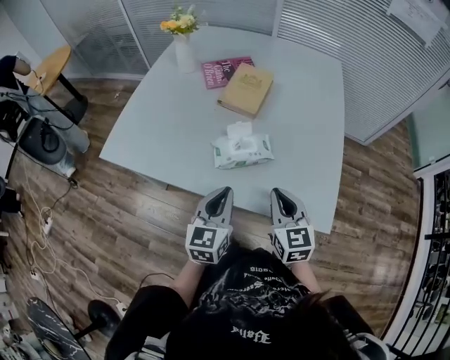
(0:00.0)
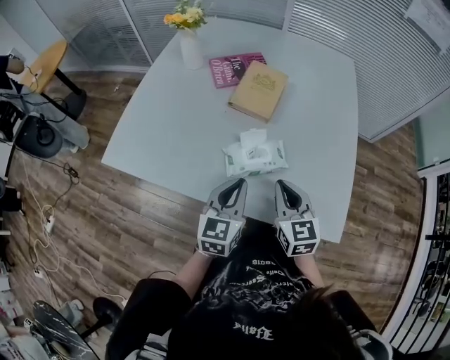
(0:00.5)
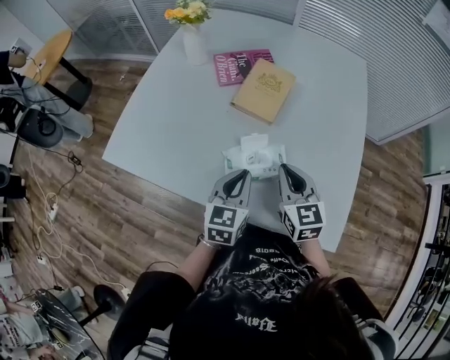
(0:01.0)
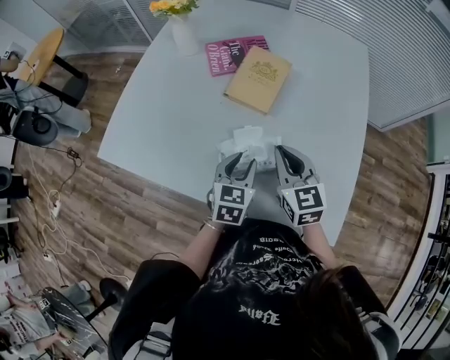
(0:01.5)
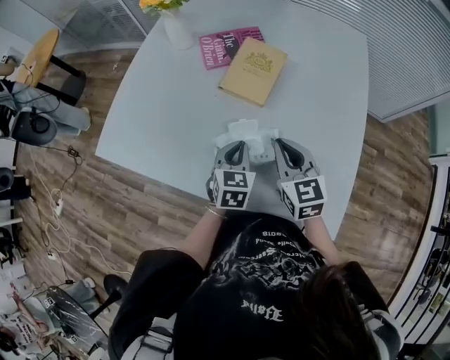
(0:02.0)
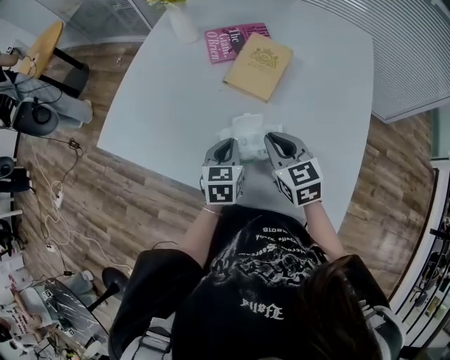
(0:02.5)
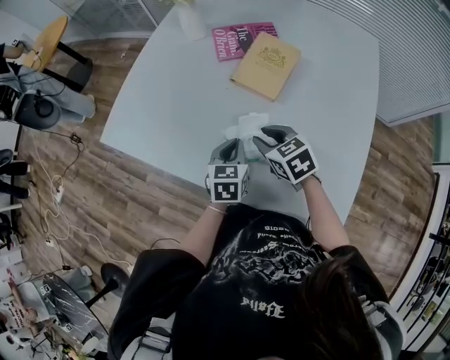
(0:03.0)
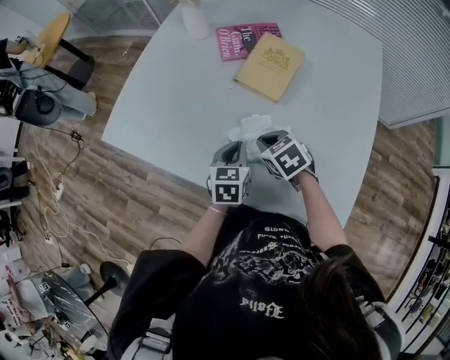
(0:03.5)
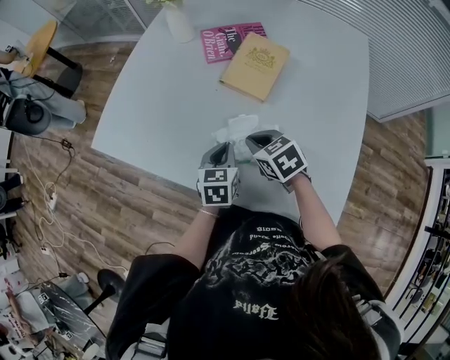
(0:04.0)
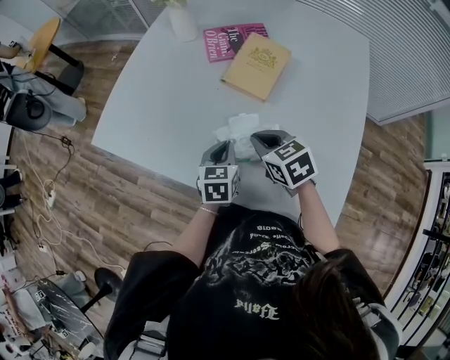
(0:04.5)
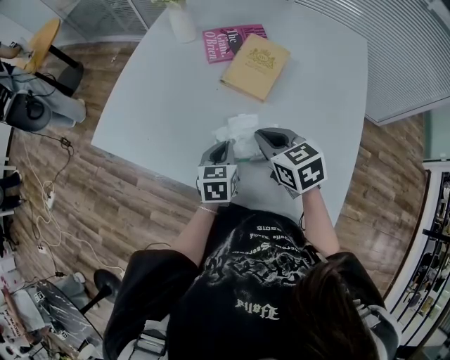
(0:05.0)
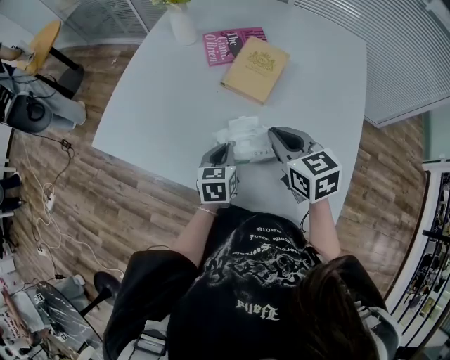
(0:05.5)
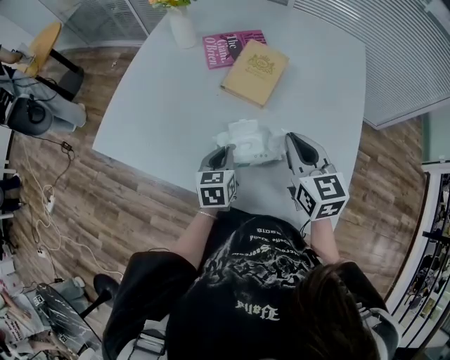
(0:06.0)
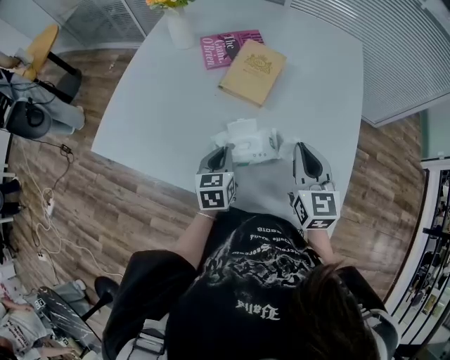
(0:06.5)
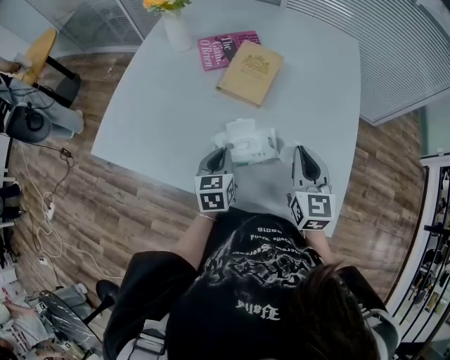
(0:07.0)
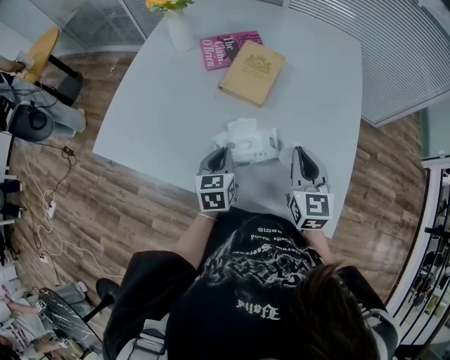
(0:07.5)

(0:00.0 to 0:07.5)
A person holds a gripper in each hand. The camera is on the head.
0:00.0 - 0:02.0: The right gripper goes roughly 20 cm forward; the left gripper moves forward and downward, some 20 cm, rotates roughly 20 degrees, and opens, then closes once more.
0:02.0 - 0:04.0: The right gripper is displaced to the left and downward by some 10 cm, swivels approximately 40 degrees, and opens, then closes once more. Meanwhile the left gripper moves to the left, approximately 5 cm.
0:04.0 - 0:05.5: The right gripper shifts some 10 cm upward and to the right, and swivels some 20 degrees.
0:05.5 - 0:07.5: The right gripper shifts approximately 10 cm to the right, and turns by approximately 30 degrees.

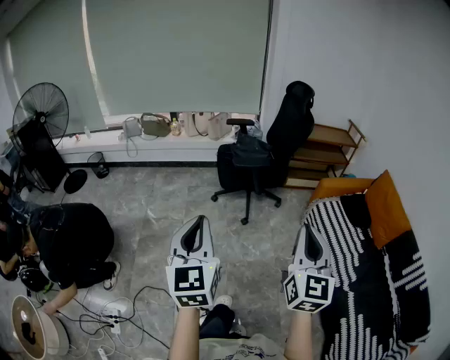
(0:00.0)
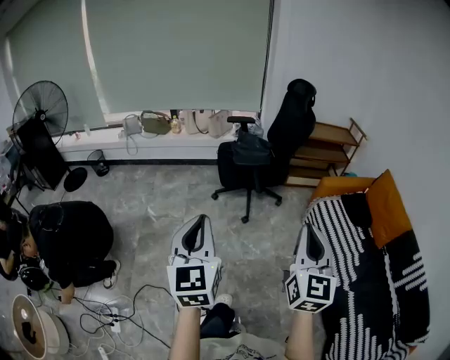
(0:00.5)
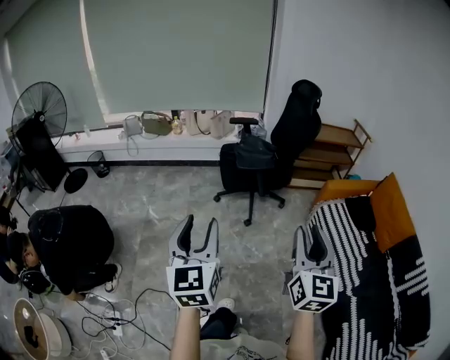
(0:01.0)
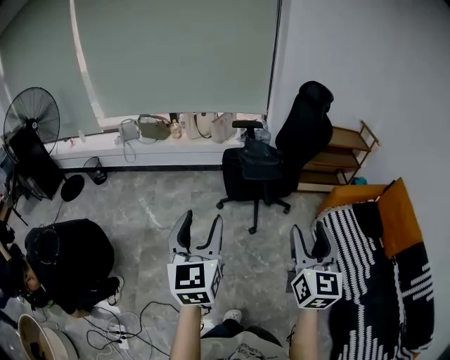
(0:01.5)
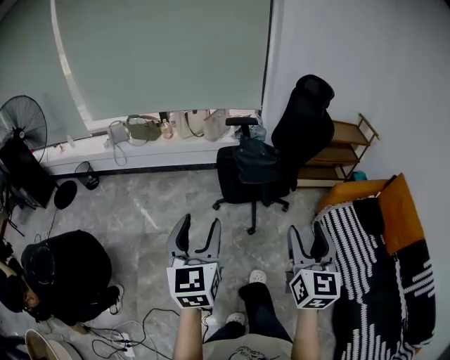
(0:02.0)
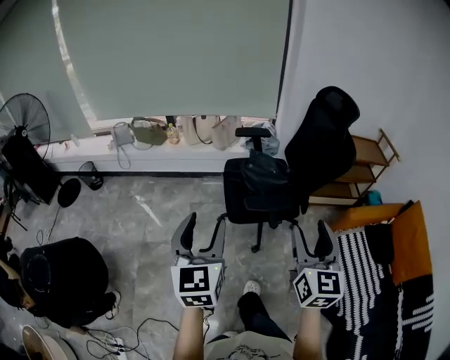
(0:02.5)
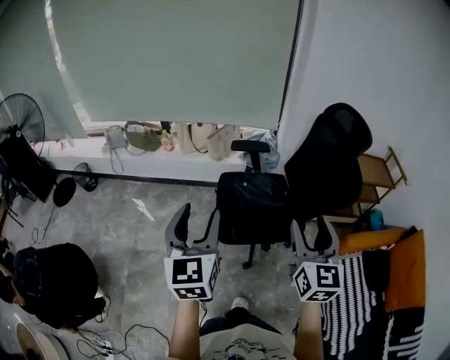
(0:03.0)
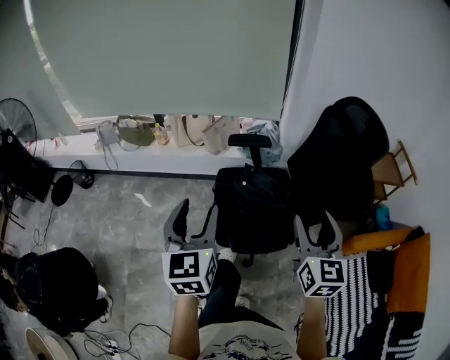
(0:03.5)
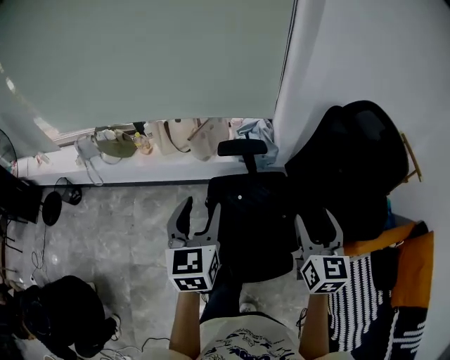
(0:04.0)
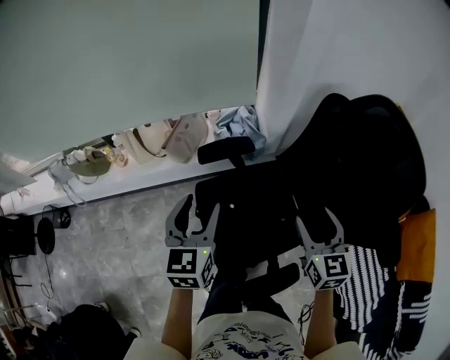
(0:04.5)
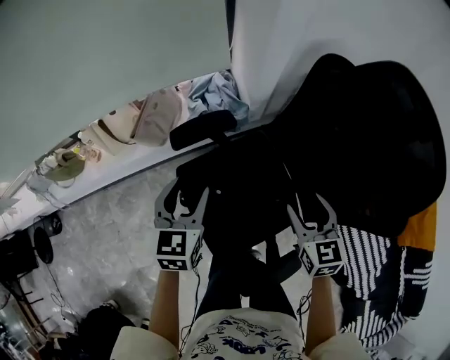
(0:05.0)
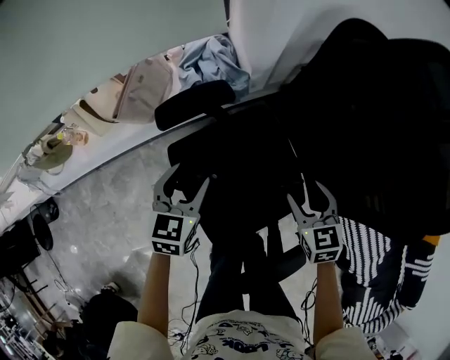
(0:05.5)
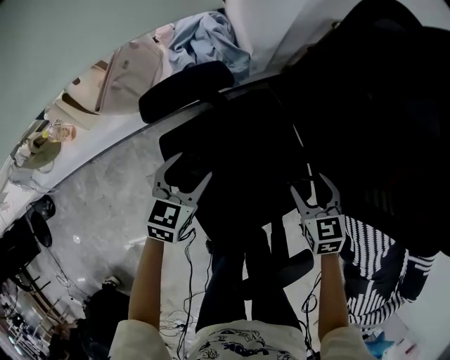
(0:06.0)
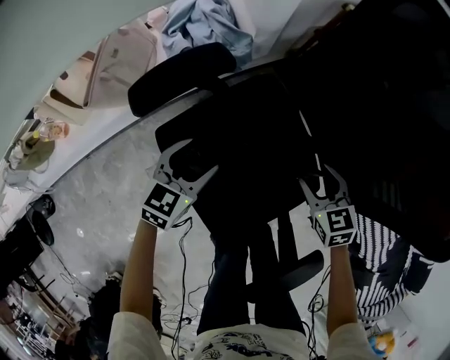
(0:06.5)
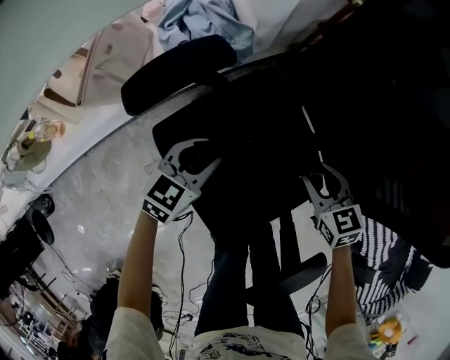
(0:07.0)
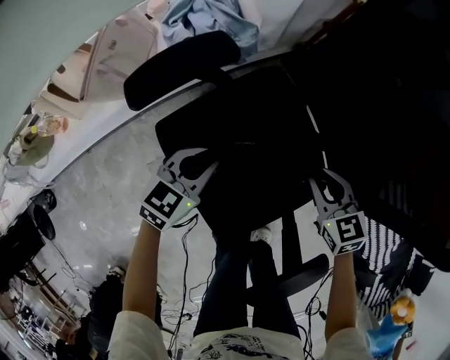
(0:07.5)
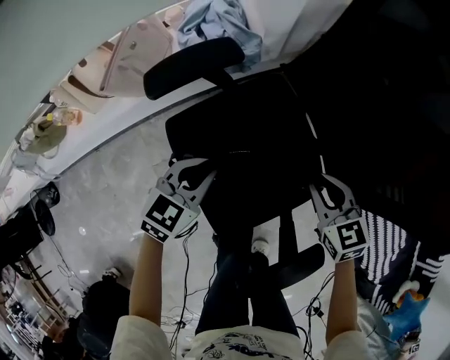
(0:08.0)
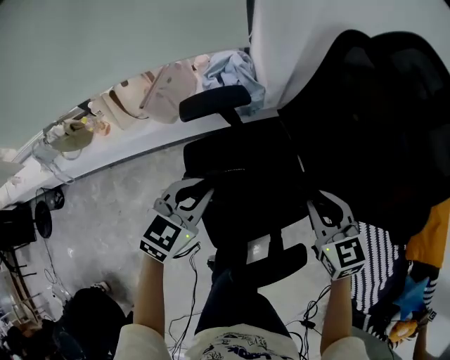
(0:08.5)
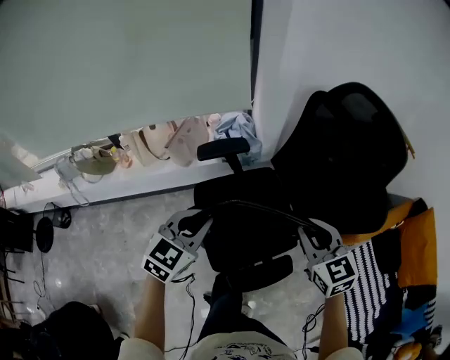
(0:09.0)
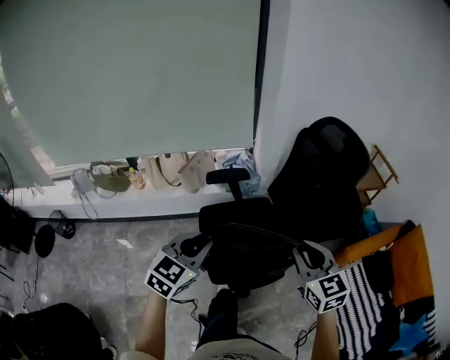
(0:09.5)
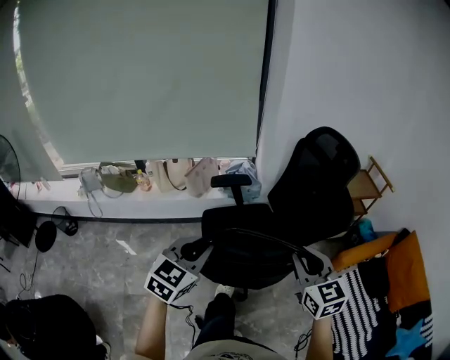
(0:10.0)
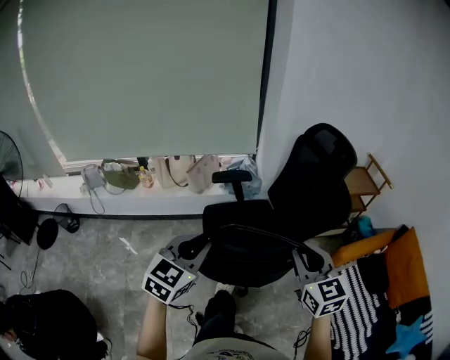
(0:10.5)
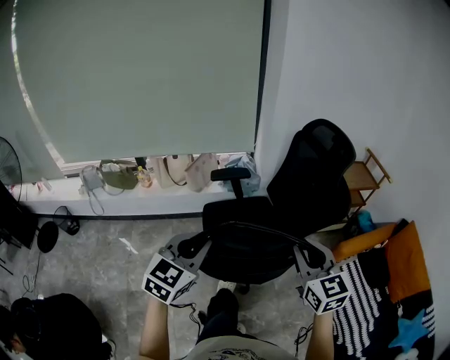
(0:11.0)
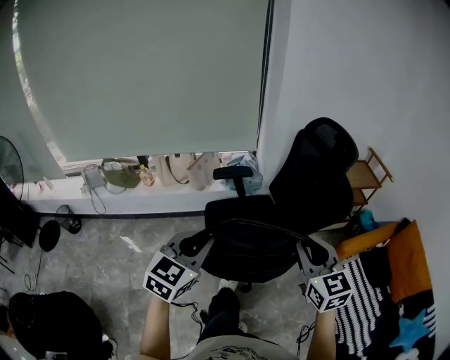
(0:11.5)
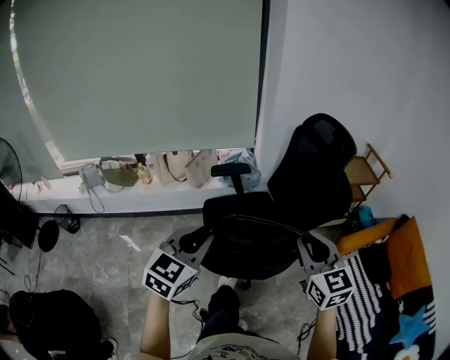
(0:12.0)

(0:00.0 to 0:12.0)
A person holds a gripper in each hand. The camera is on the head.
0:00.0 - 0:02.0: Both grippers travel together forward, approximately 30 cm. The right gripper opens up. The left gripper opens.
0:02.0 - 0:04.0: The two grippers travel together, forward, some 70 cm.
0:04.0 - 0:06.0: Both grippers travel together downward and forward, roughly 50 cm. The right gripper tilts its fingers about 30 degrees downward. The left gripper rotates some 50 degrees.
0:06.0 - 0:08.0: The left gripper is displaced backward by roughly 5 cm, and closes, while the right gripper closes.
0:08.0 - 0:10.0: Both grippers move upward and backward, about 60 cm. The right gripper swivels some 30 degrees, while the left gripper turns by about 30 degrees.
0:10.0 - 0:12.0: The grippers make only small movements.

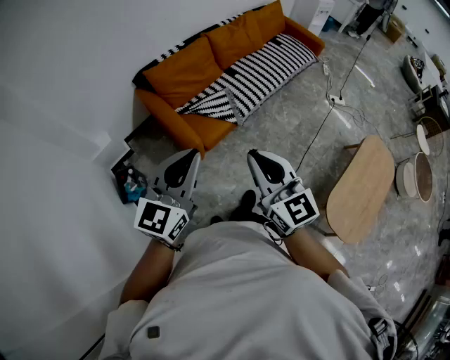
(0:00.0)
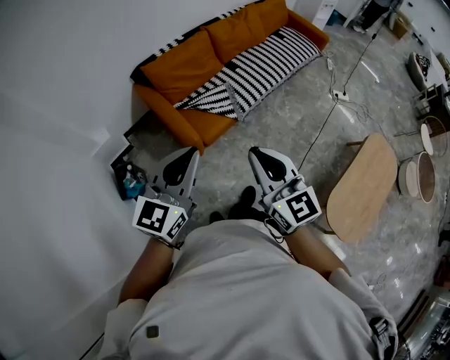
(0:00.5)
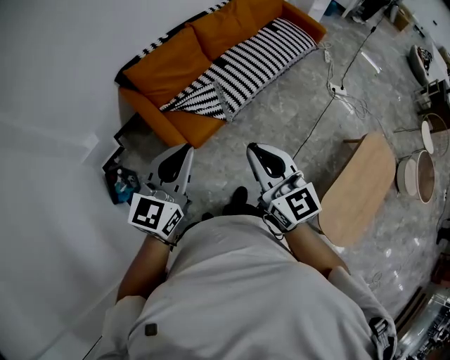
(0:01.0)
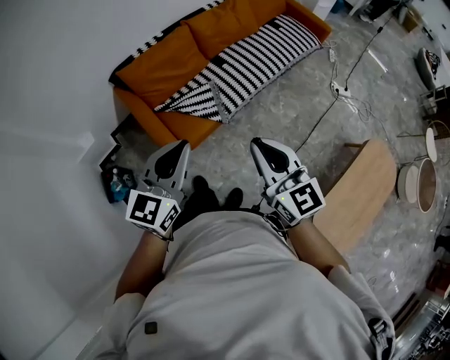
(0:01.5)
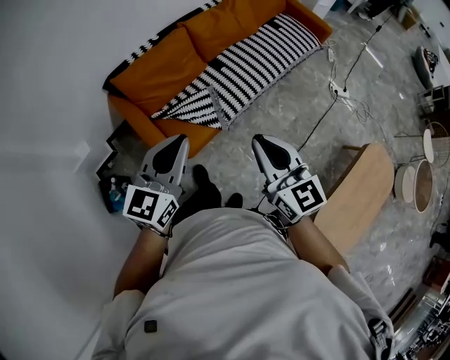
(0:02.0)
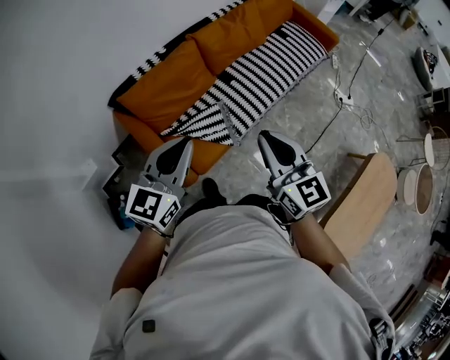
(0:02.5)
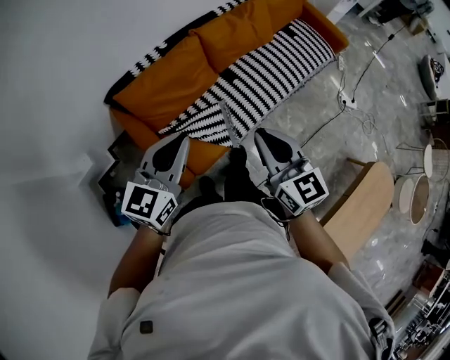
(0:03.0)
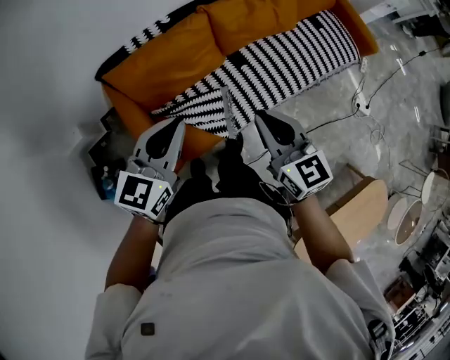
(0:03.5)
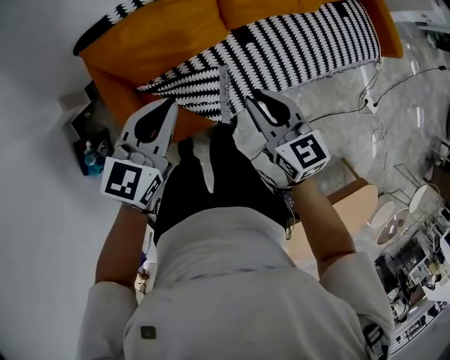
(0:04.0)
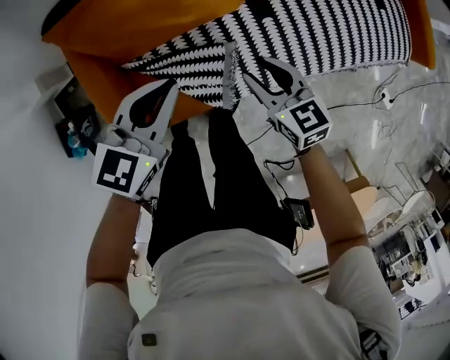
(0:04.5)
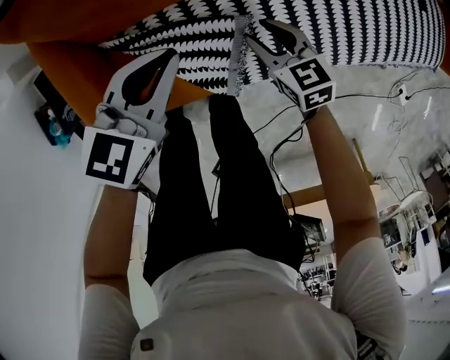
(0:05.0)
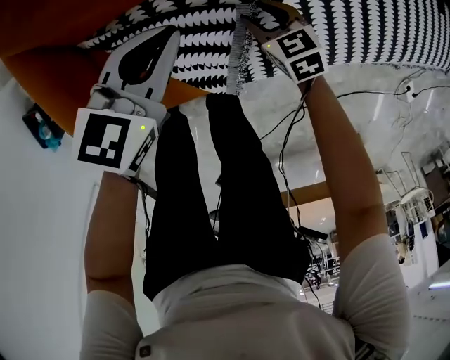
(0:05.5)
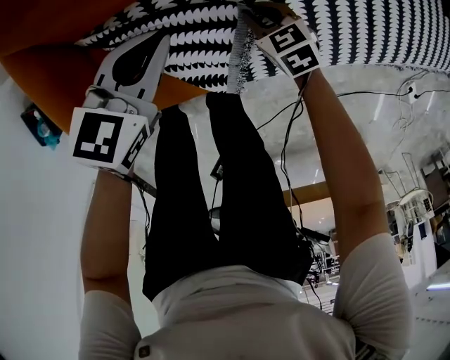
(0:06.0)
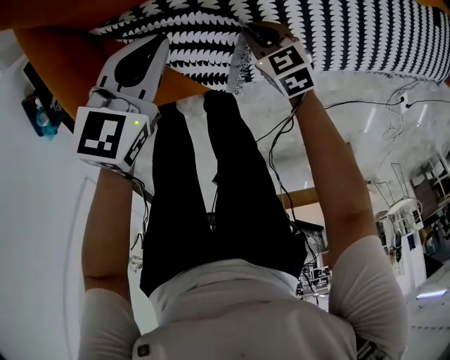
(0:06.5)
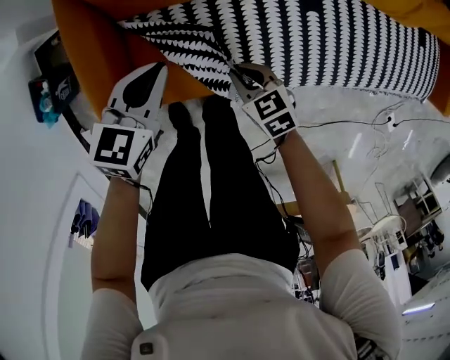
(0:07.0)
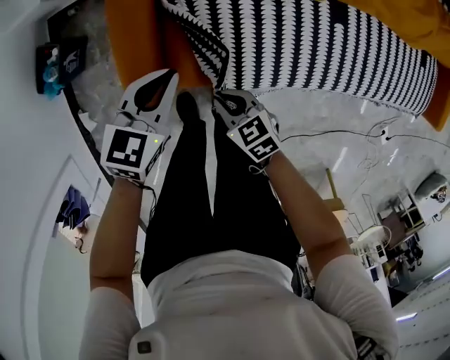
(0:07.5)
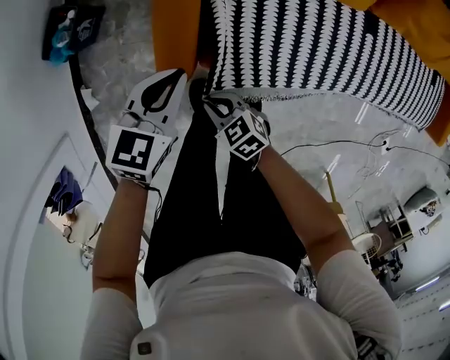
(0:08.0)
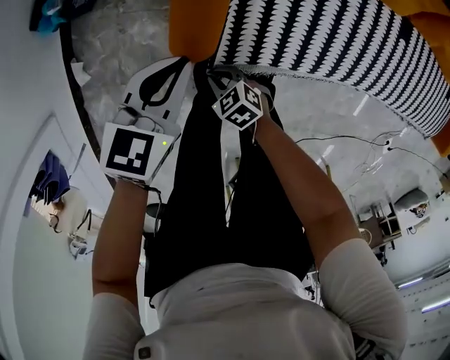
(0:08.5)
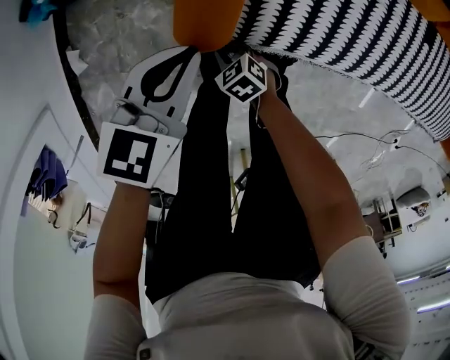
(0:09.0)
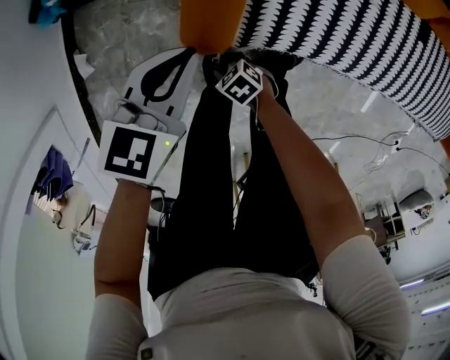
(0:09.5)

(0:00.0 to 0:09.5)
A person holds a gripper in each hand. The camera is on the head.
0:00.0 - 0:02.0: The two grippers go approximately 30 cm forward and to the right.
0:02.0 - 0:04.0: The pair of grippers is taken forward, roughly 40 cm. Both grippers move downward, approximately 20 cm. The right gripper rotates roughly 30 degrees. Meanwhile the left gripper swivels roughly 20 degrees.
0:04.0 - 0:05.5: Both grippers move downward, roughly 50 cm. The right gripper rotates about 30 degrees, and opens.
0:05.5 - 0:07.5: The right gripper heads to the left, backward and upward, covering approximately 30 cm, and closes. The left gripper goes roughly 15 cm to the left, upward and backward.
0:07.5 - 0:09.5: The right gripper goes up and down, approximately 25 cm each way, reversing 2 times, rotates some 30 degrees, and opens up. The left gripper moves approximately 20 cm.
